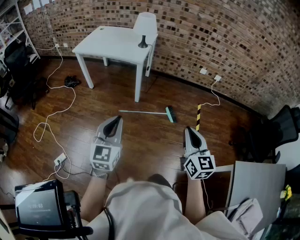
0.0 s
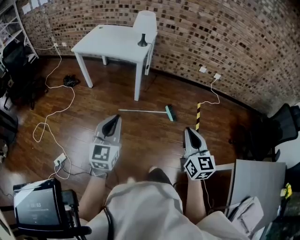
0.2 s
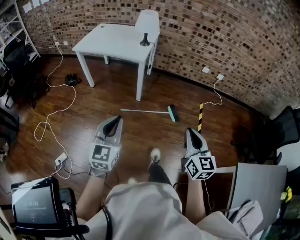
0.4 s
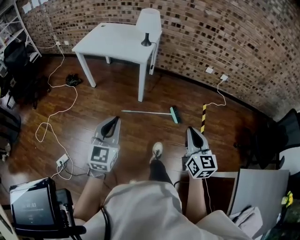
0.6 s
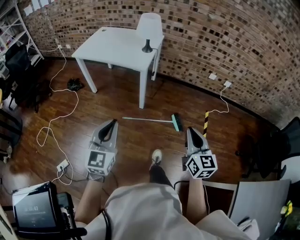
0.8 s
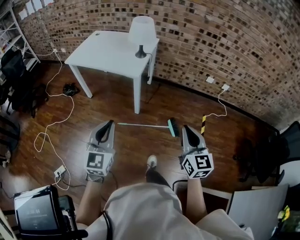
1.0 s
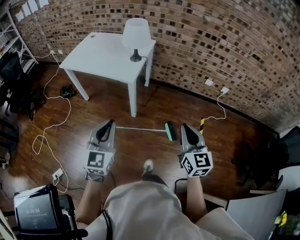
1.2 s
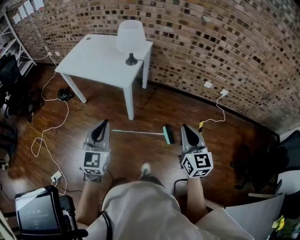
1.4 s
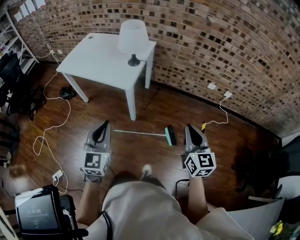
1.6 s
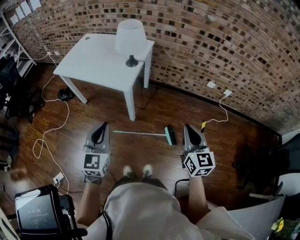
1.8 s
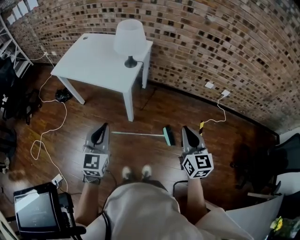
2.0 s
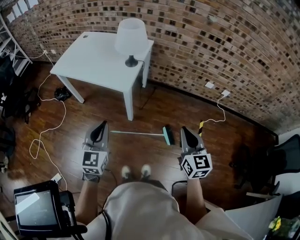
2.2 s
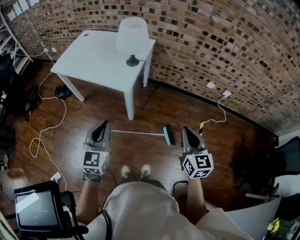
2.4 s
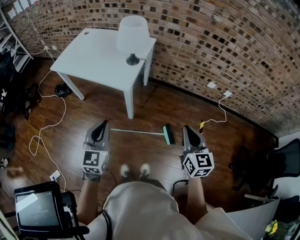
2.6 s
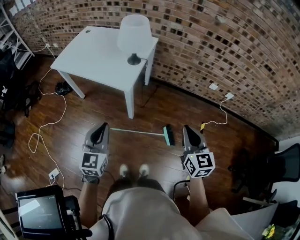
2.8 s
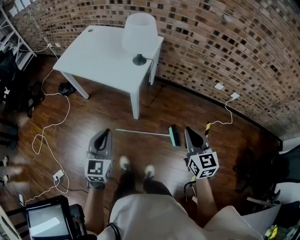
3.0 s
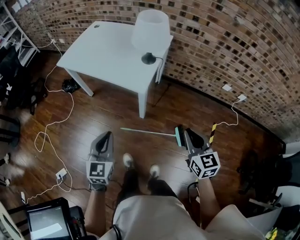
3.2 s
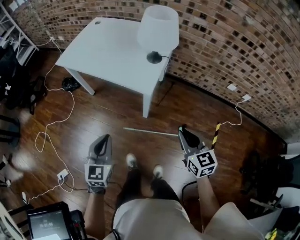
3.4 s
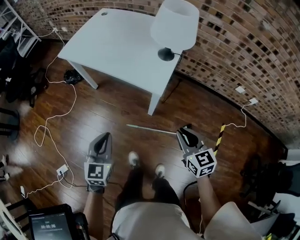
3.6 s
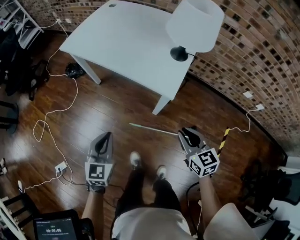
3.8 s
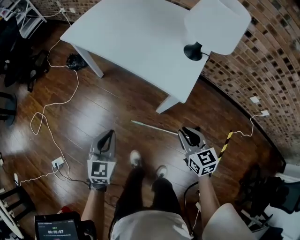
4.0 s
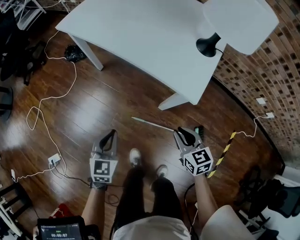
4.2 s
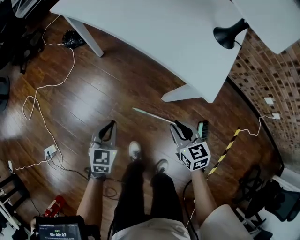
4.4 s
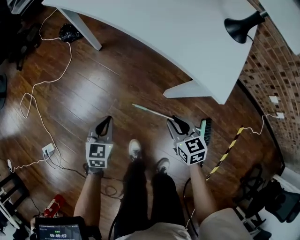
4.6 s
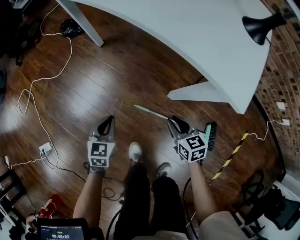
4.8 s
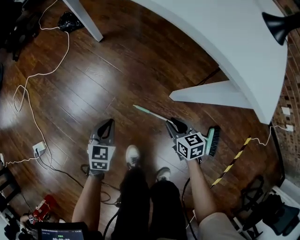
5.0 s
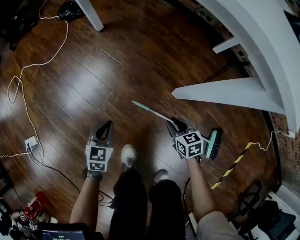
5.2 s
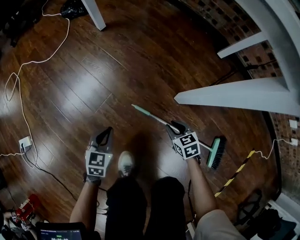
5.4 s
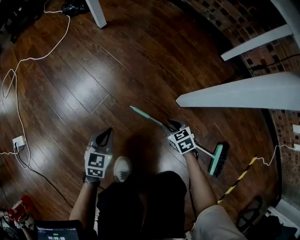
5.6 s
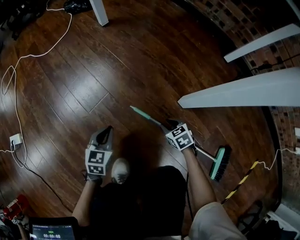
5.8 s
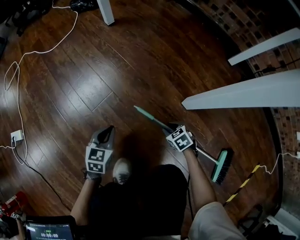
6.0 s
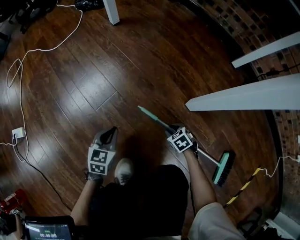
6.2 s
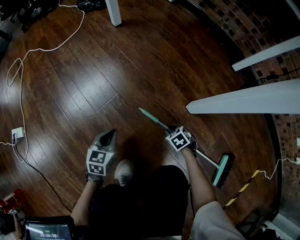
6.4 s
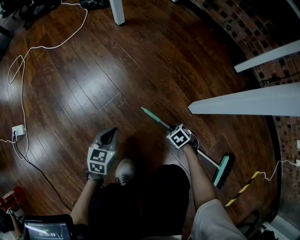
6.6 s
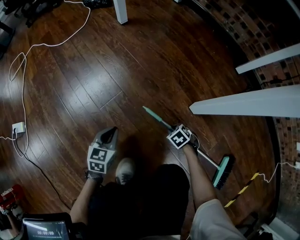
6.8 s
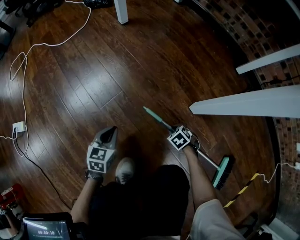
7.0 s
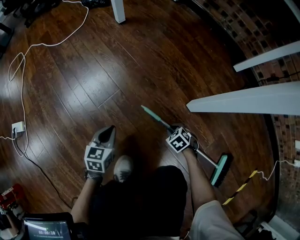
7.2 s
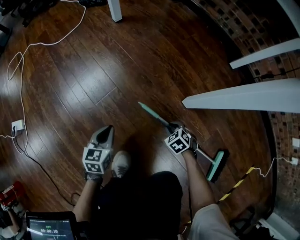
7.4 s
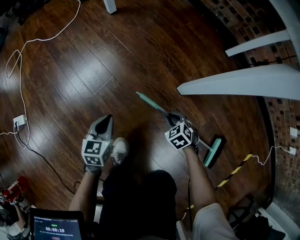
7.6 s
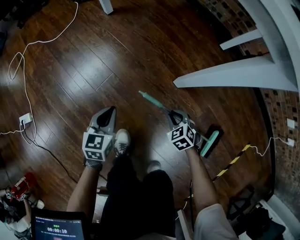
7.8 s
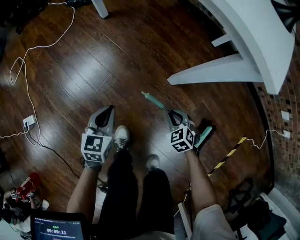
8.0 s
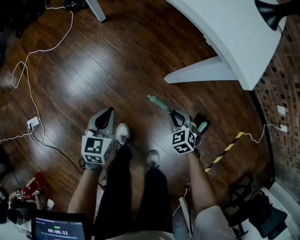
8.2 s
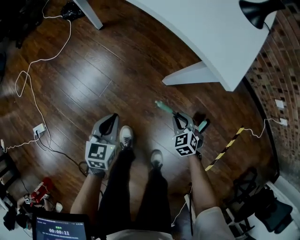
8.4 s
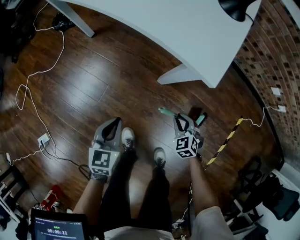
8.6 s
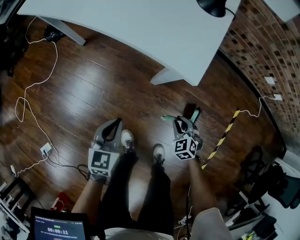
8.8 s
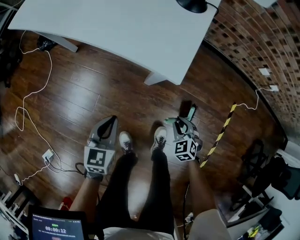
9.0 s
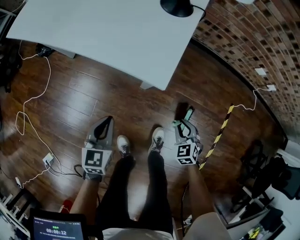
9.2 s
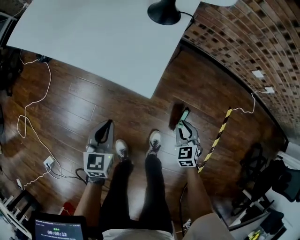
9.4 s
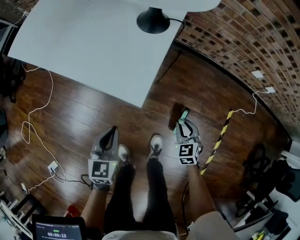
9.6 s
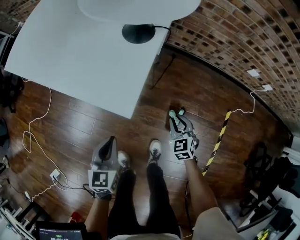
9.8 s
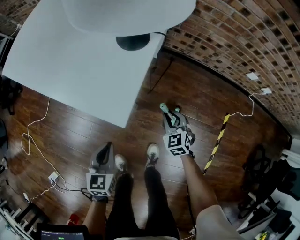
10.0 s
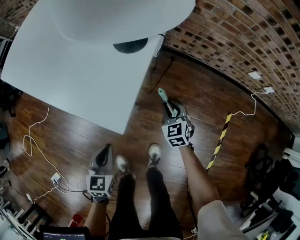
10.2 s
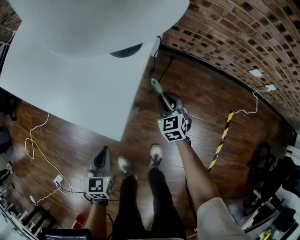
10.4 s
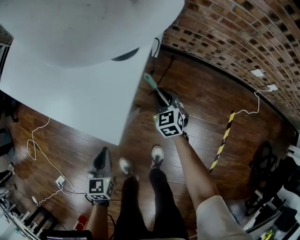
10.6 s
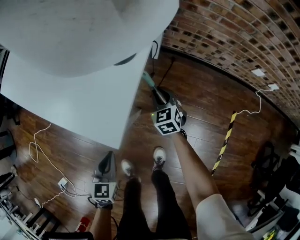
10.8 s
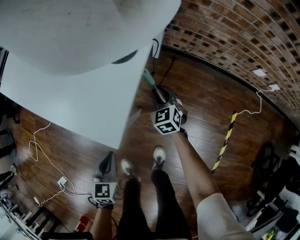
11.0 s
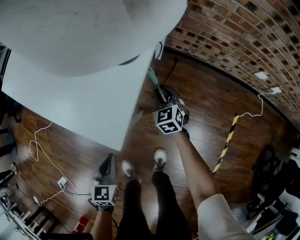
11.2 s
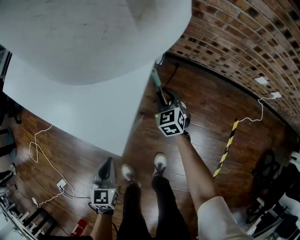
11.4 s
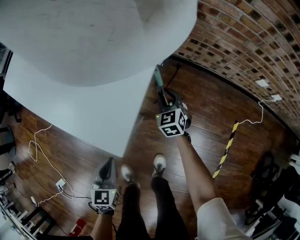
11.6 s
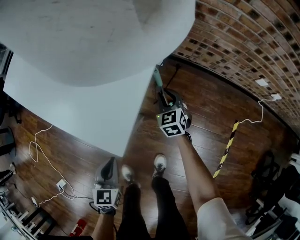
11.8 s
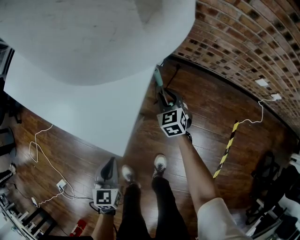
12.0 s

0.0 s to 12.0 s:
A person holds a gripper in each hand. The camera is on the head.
0.0 to 1.6 s: The grippers both shift forward by roughly 35 cm.
1.6 to 3.0 s: The left gripper heads downward and forward, covering about 10 cm. The right gripper goes some 10 cm forward.
3.0 to 4.4 s: Both grippers travel together downward, to the left and forward, about 50 cm. The left gripper swivels about 20 degrees, while the right gripper turns by some 30 degrees.
4.4 to 6.0 s: The two grippers go about 50 cm downward. The right gripper changes its angle by roughly 40 degrees.
6.0 to 7.6 s: Both grippers move upward, roughly 10 cm.
7.6 to 9.0 s: The two grippers go some 35 cm upward. The left gripper swivels roughly 30 degrees. The right gripper changes its angle by approximately 30 degrees.
9.0 to 10.4 s: The left gripper heads to the right and forward, covering some 10 cm; the right gripper is displaced forward by about 25 cm, and swivels some 20 degrees.
10.4 to 12.0 s: The right gripper is displaced forward by roughly 5 cm.

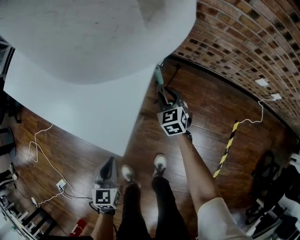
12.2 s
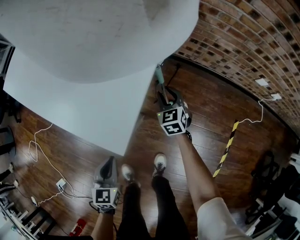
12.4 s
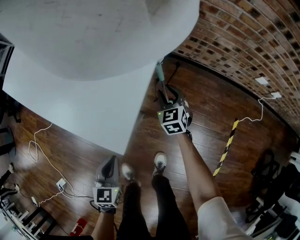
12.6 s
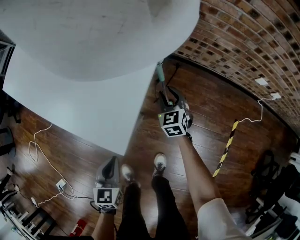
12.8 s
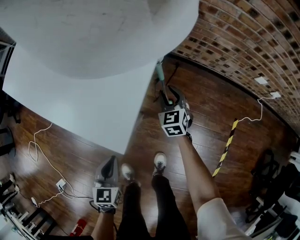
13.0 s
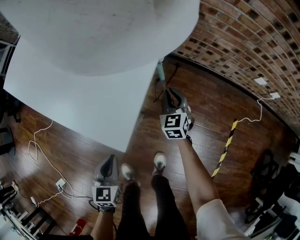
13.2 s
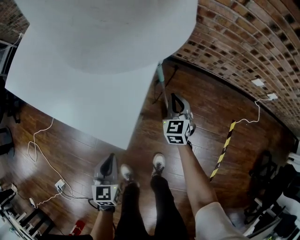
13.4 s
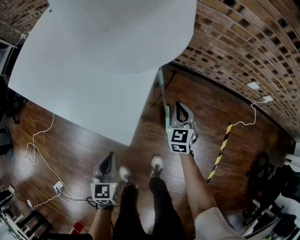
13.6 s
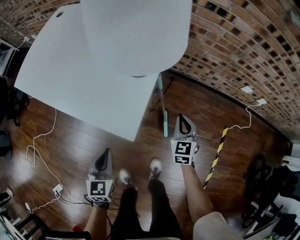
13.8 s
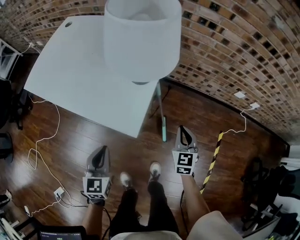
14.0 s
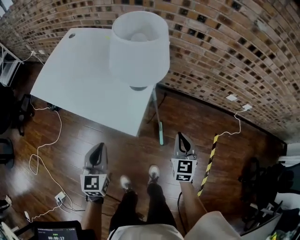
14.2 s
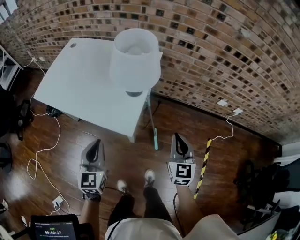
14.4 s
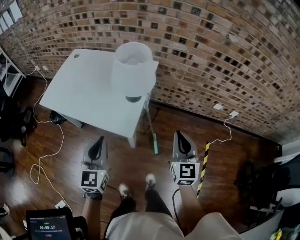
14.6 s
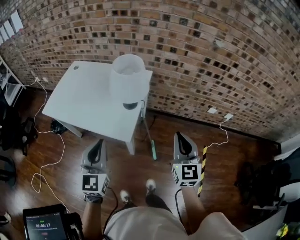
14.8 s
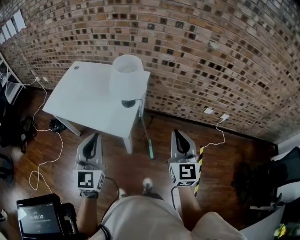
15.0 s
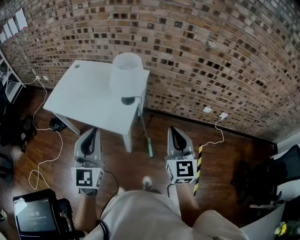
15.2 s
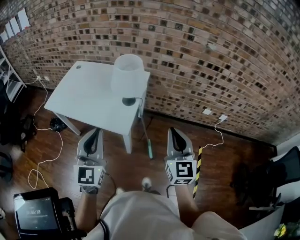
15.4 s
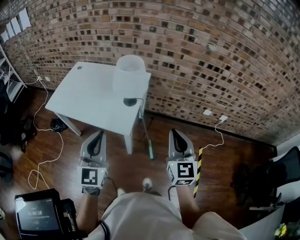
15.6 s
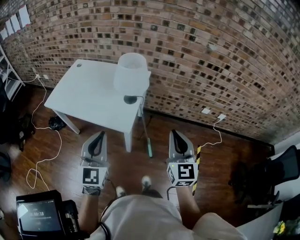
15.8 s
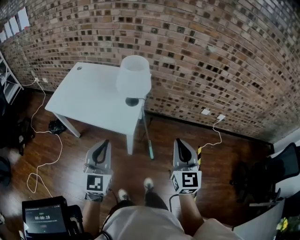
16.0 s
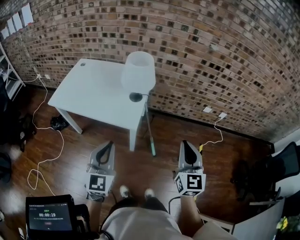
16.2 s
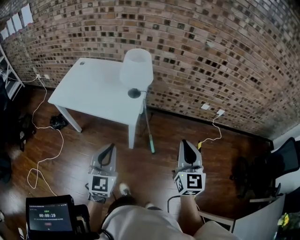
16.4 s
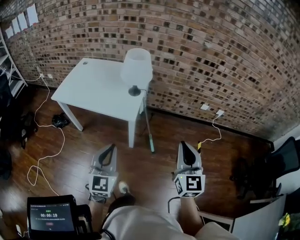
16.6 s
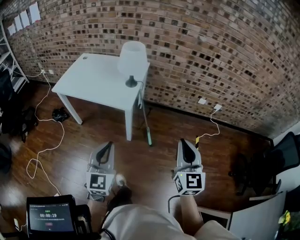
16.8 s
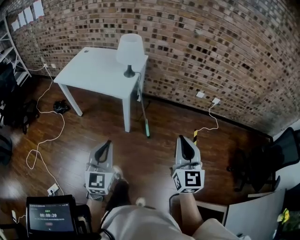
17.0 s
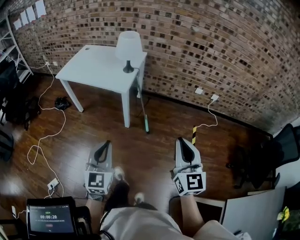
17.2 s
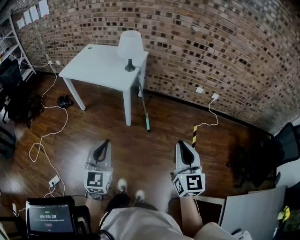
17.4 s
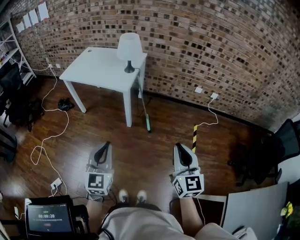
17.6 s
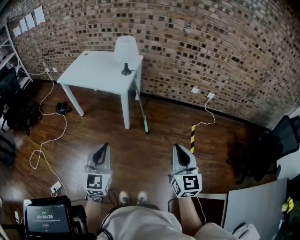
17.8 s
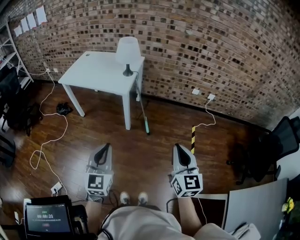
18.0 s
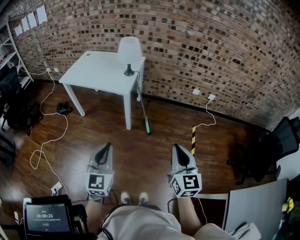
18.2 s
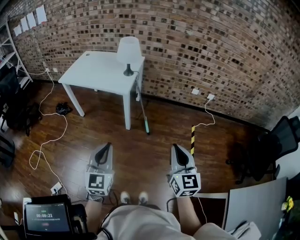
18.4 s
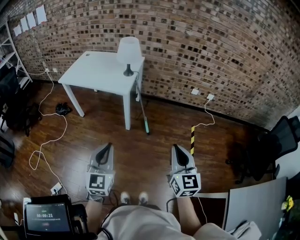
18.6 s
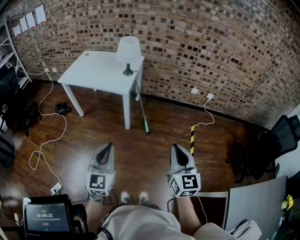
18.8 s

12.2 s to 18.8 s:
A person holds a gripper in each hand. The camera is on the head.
12.2 to 13.8 s: The right gripper is displaced upward, backward and to the right by some 20 cm, and closes up. Meanwhile the left gripper is displaced upward by approximately 10 cm.
13.8 to 15.4 s: The left gripper shifts roughly 40 cm upward, and tips its fingers upward by approximately 40 degrees; the right gripper heads upward and backward, covering some 50 cm, and turns by approximately 30 degrees.
15.4 to 17.2 s: The two grippers go roughly 35 cm backward.
17.2 to 18.8 s: Both grippers travel together backward, approximately 5 cm.

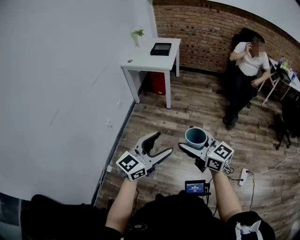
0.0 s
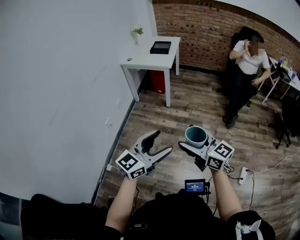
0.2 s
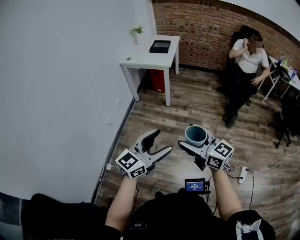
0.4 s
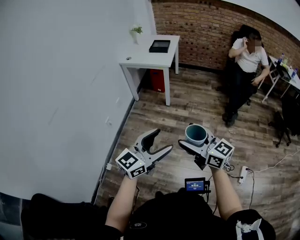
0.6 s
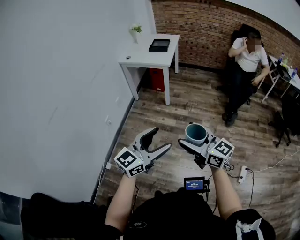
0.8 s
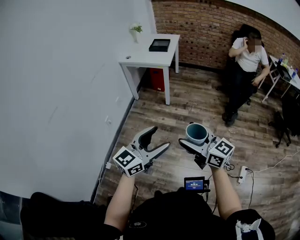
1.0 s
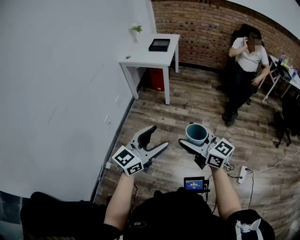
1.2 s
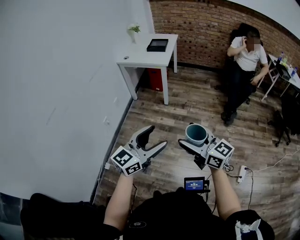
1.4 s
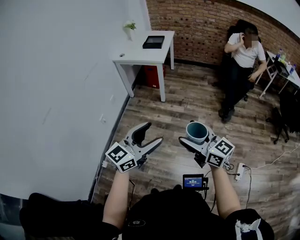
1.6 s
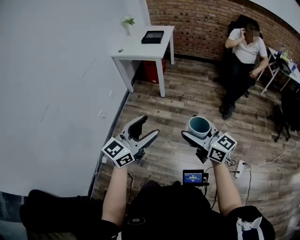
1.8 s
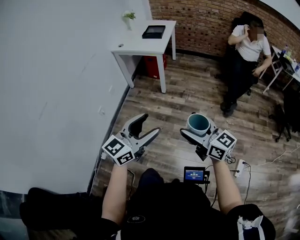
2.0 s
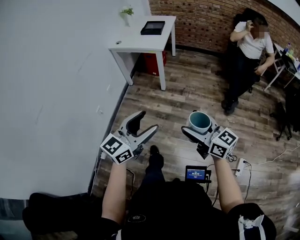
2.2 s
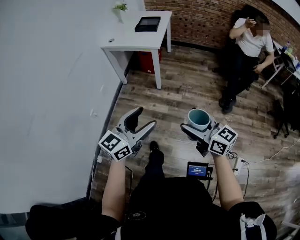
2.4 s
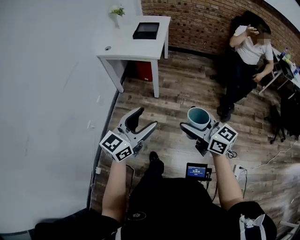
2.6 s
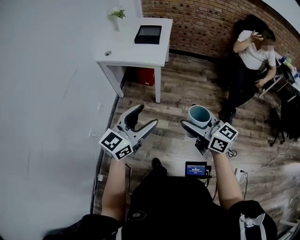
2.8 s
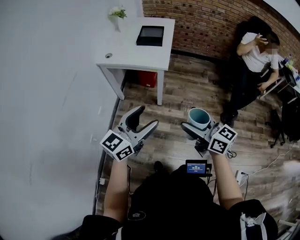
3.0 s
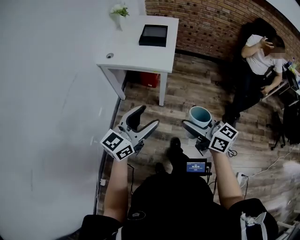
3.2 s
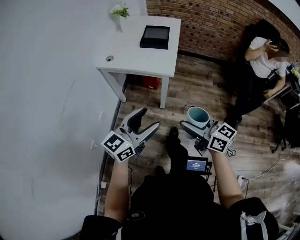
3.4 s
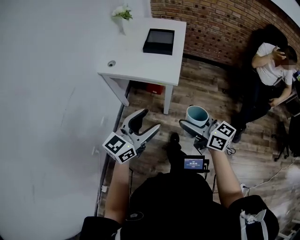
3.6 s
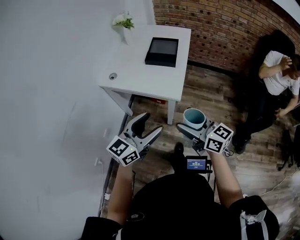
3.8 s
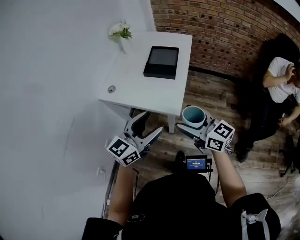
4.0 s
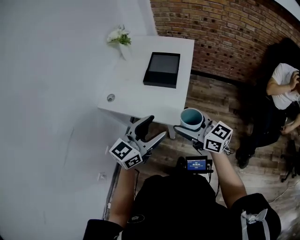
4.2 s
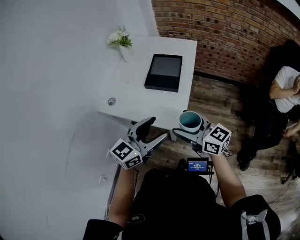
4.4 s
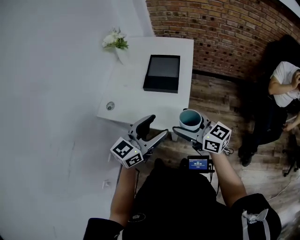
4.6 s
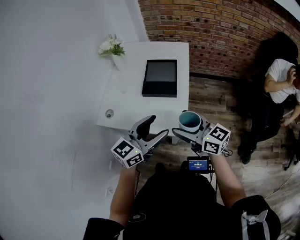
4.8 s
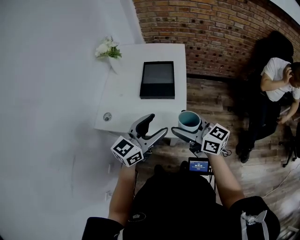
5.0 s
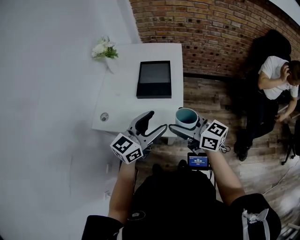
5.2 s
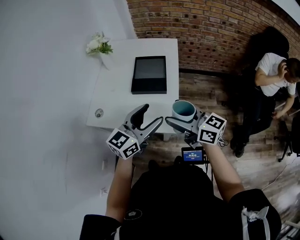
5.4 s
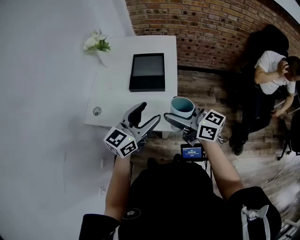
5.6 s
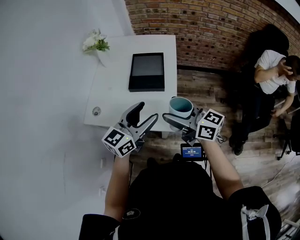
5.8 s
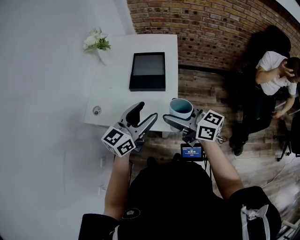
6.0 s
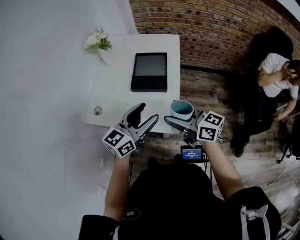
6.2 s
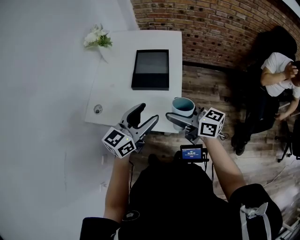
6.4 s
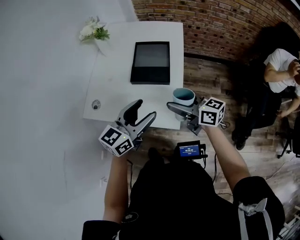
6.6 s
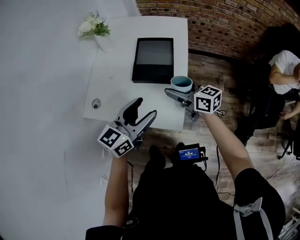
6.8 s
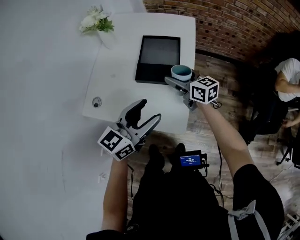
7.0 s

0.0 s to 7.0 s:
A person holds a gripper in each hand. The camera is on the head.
0.0 to 1.4 s: The grippers make only small movements.
1.4 to 2.8 s: Both grippers travel together forward, about 35 cm.
2.8 to 4.2 s: Both grippers are carried forward, approximately 40 cm.
4.2 to 5.6 s: Both grippers move forward, some 10 cm.
5.6 to 7.0 s: The right gripper heads forward and downward, covering about 25 cm. Meanwhile the left gripper shifts some 5 cm forward.
